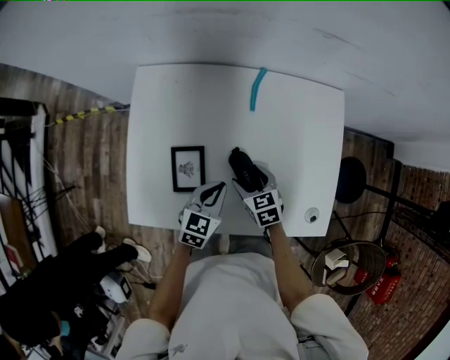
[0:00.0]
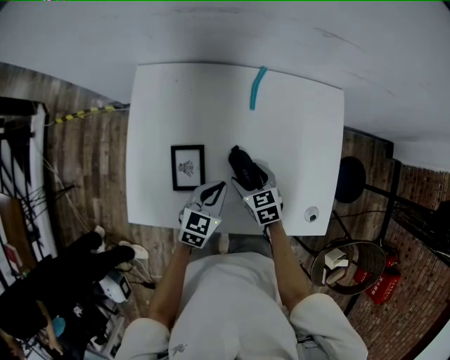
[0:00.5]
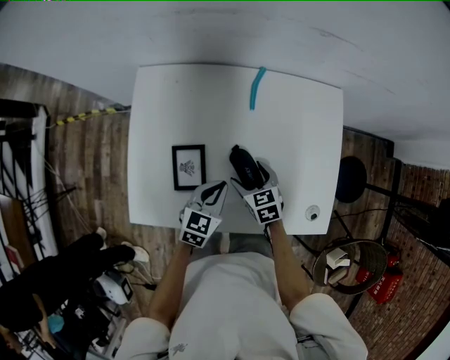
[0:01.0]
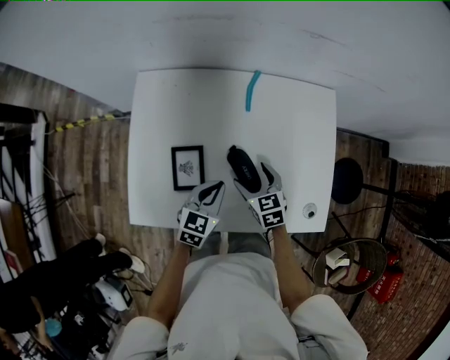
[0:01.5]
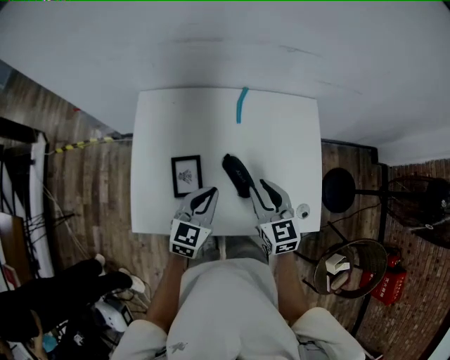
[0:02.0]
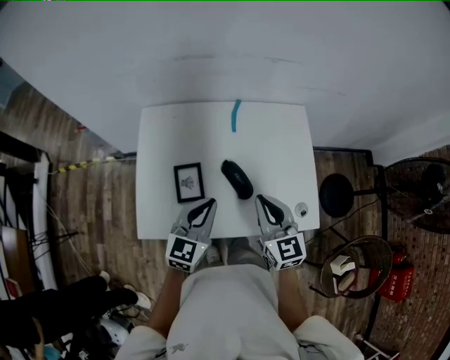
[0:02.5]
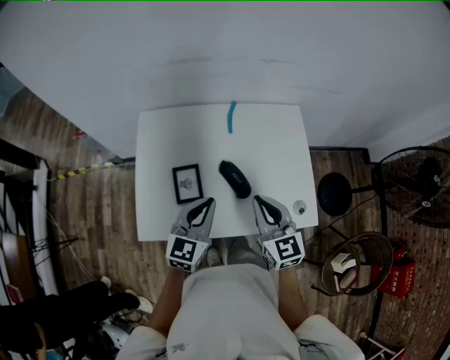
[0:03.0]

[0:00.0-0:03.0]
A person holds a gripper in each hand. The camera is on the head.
0:00.0 to 0:01.5: The grippers stay close to where they were, moving slightly.
0:01.5 to 0:03.0: Both grippers move upward and backward, roughly 20 cm. The left gripper changes its angle by about 20 degrees. The right gripper turns by roughly 30 degrees, and closes its fingers.

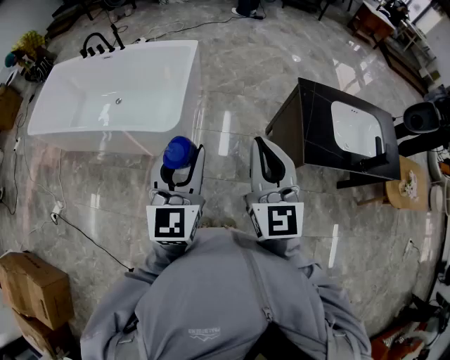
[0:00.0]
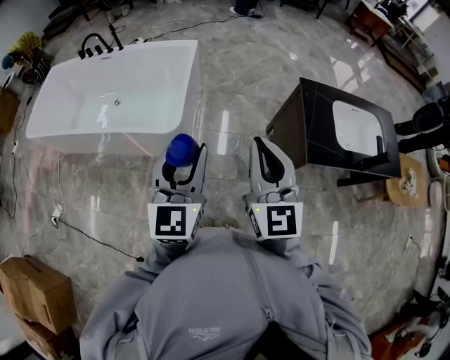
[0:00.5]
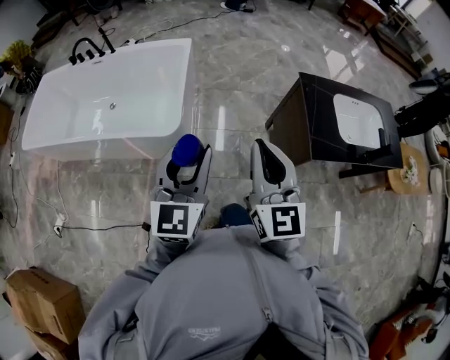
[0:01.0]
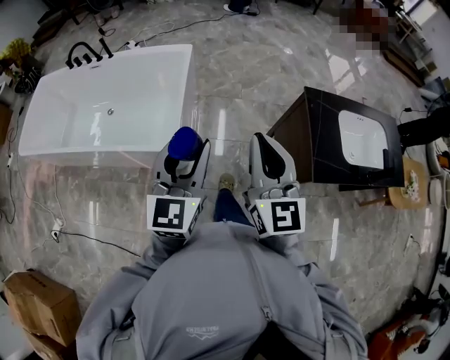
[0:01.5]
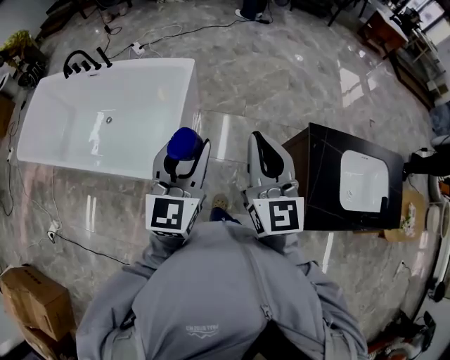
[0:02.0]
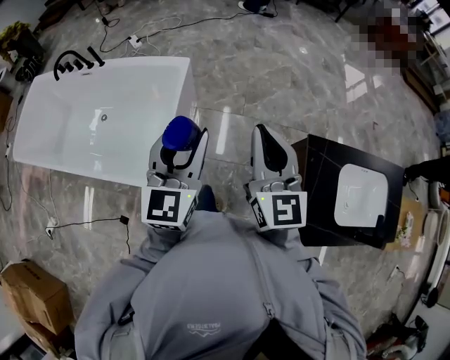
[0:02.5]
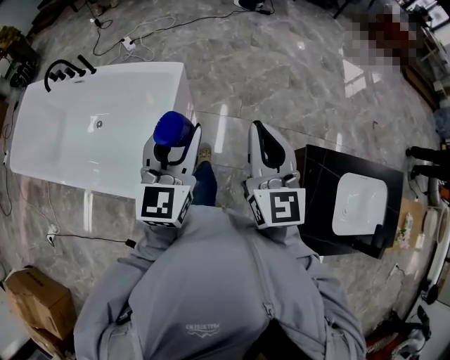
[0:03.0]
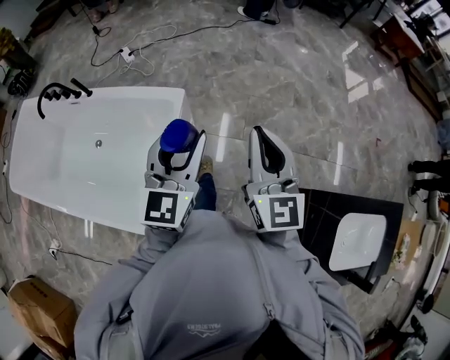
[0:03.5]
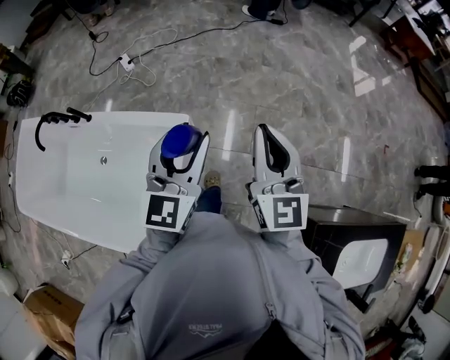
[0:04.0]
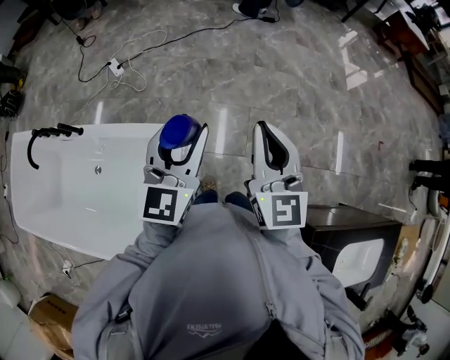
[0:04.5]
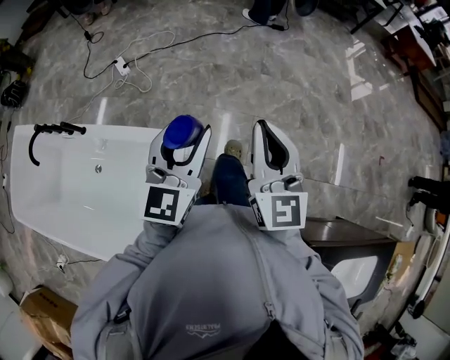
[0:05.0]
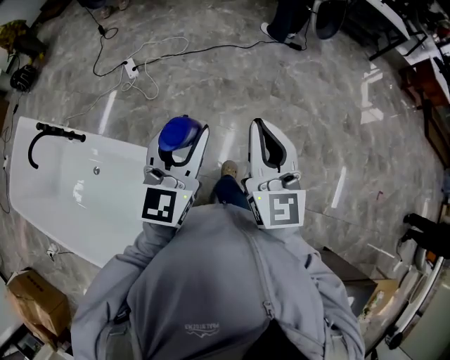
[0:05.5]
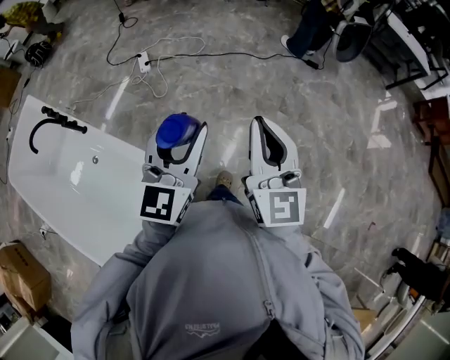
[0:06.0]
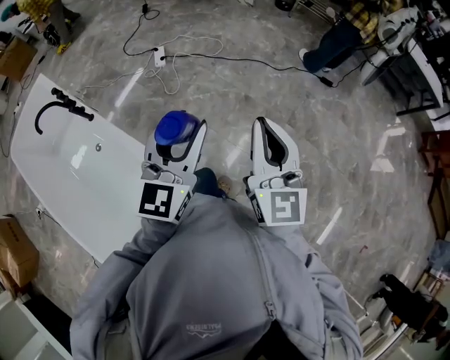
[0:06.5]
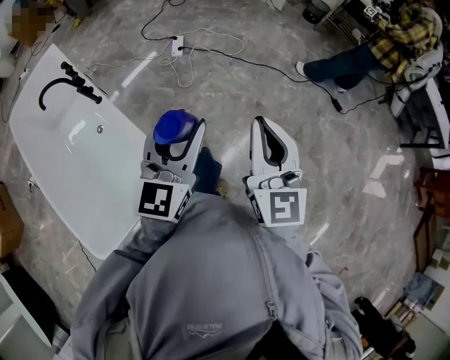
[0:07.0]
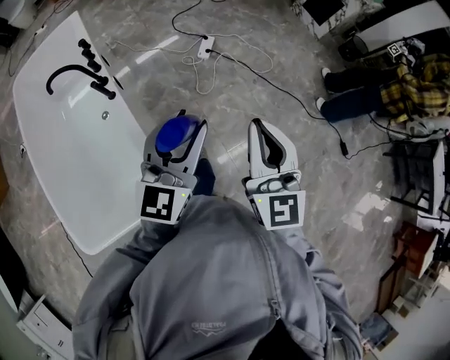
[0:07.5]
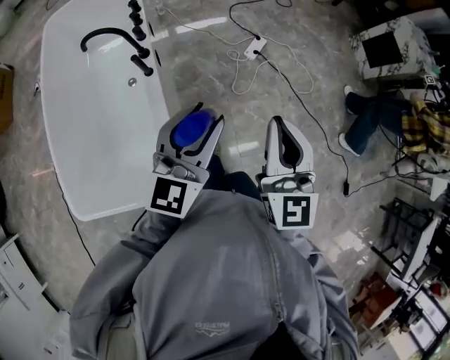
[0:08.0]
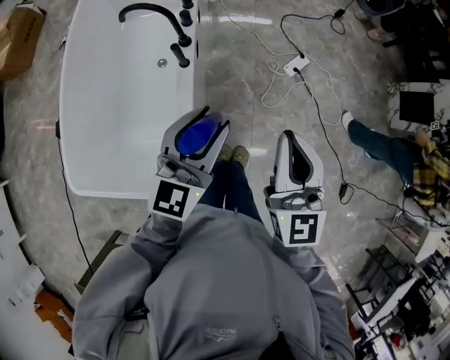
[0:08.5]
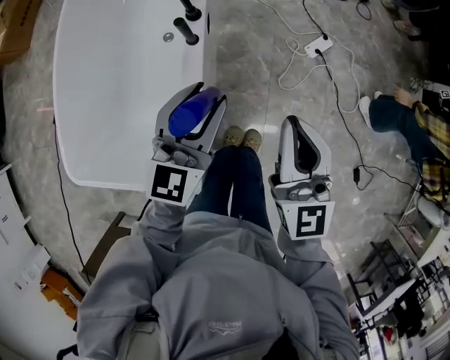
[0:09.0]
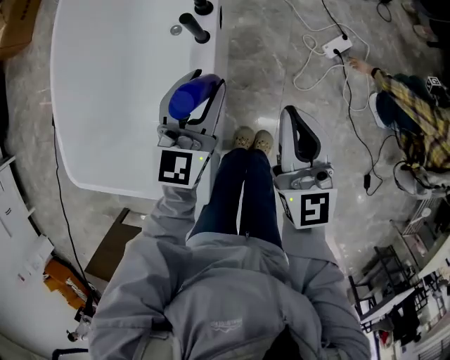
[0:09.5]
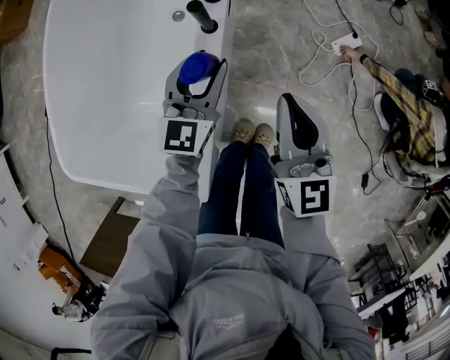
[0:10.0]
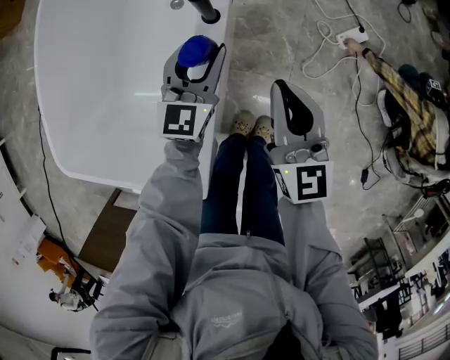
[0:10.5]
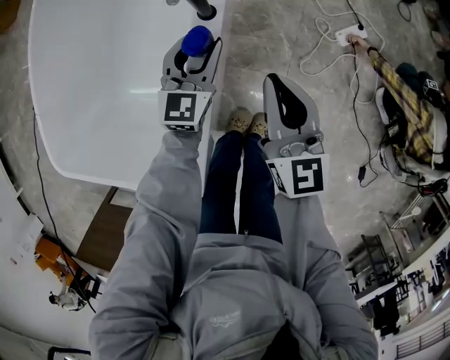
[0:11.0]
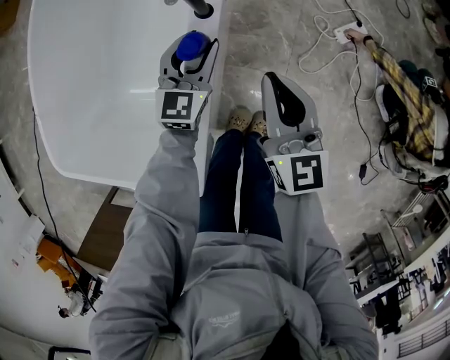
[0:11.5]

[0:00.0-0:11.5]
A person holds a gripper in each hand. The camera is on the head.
0:00.0 to 0:02.0: Both grippers travel together forward, roughly 30 cm.
0:02.0 to 0:04.0: The pair of grippers is taken forward, some 50 cm.
0:04.0 to 0:06.0: Both grippers move forward, roughly 30 cm.
0:06.0 to 0:07.5: The left gripper shifts by some 25 cm, and swivels about 30 degrees. Meanwhile the right gripper moves roughly 30 cm, and swivels approximately 30 degrees.
0:07.5 to 0:09.5: The right gripper ends up roughly 40 cm from where it was, and swivels about 40 degrees. Meanwhile the left gripper shifts by some 40 cm, and turns by approximately 40 degrees.
0:09.5 to 0:11.5: The right gripper is displaced downward by roughly 10 cm, while the left gripper shifts approximately 15 cm downward.

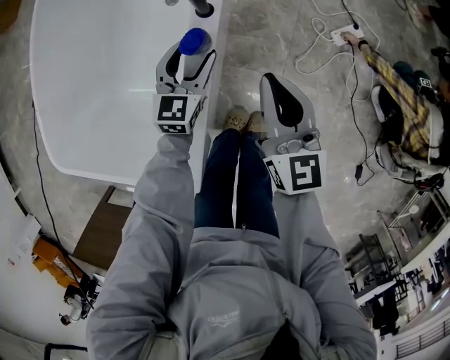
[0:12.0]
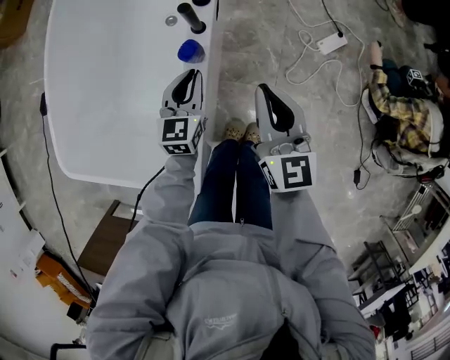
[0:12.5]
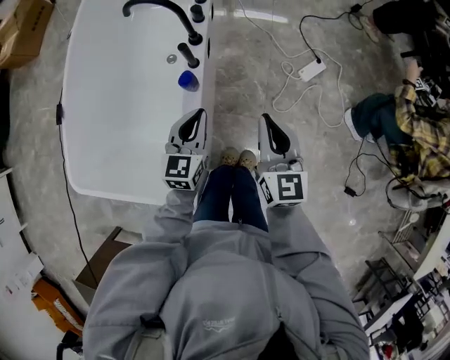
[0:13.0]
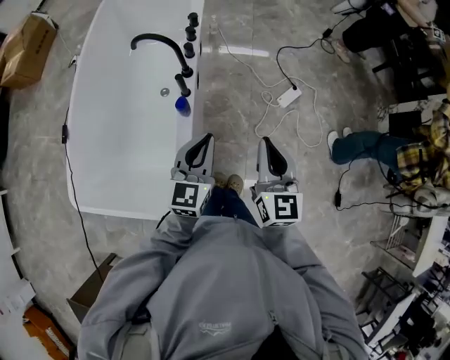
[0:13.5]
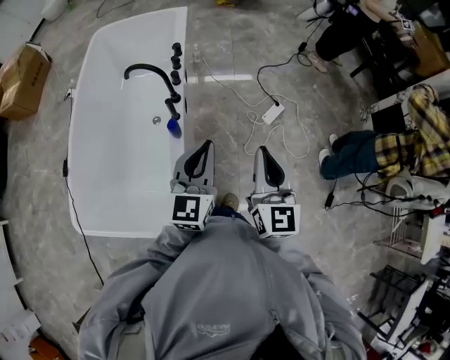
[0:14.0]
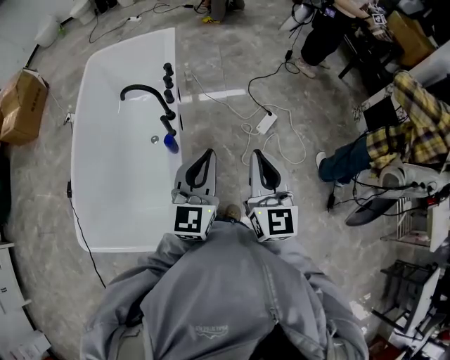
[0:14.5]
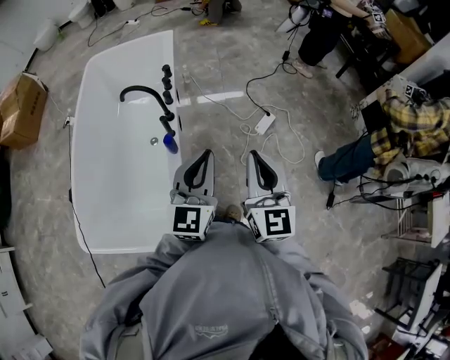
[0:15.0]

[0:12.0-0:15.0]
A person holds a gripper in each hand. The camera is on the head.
0:12.0 to 0:13.5: The right gripper goes approximately 25 cm upward, to the right and backward; the left gripper travels upward and backward by approximately 35 cm, and closes its fingers.
0:13.5 to 0:15.0: The right gripper heads upward and backward, covering some 15 cm. Meanwhile the left gripper moves upward, about 15 cm.

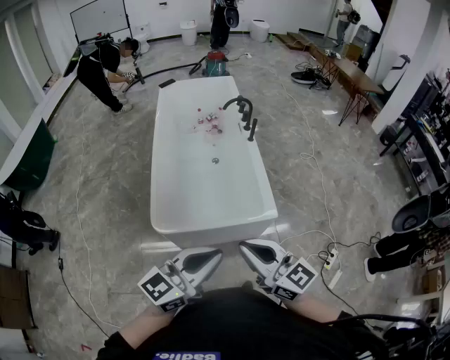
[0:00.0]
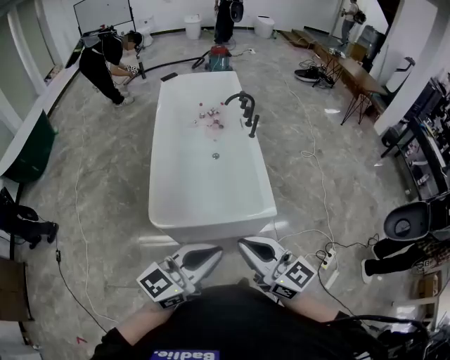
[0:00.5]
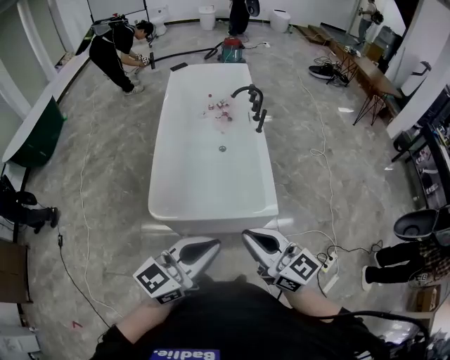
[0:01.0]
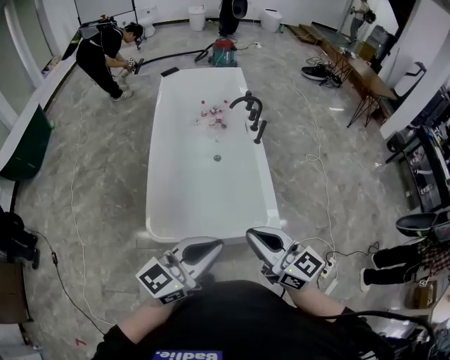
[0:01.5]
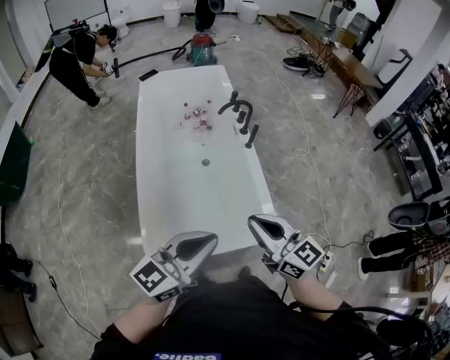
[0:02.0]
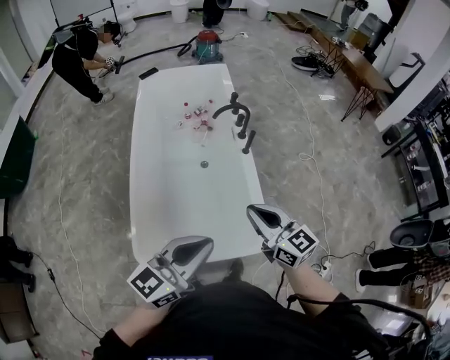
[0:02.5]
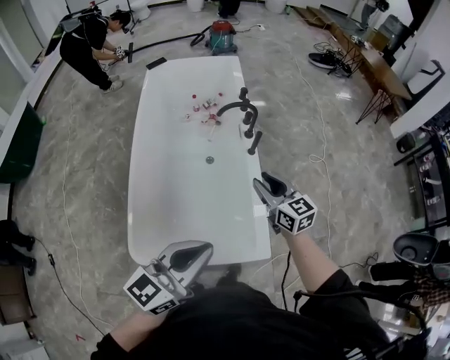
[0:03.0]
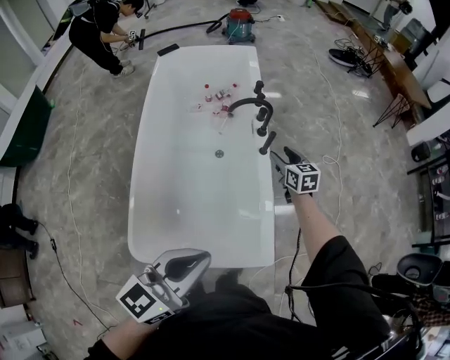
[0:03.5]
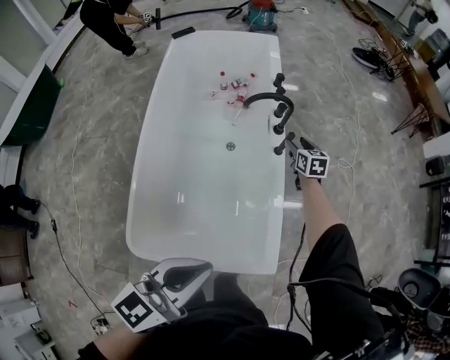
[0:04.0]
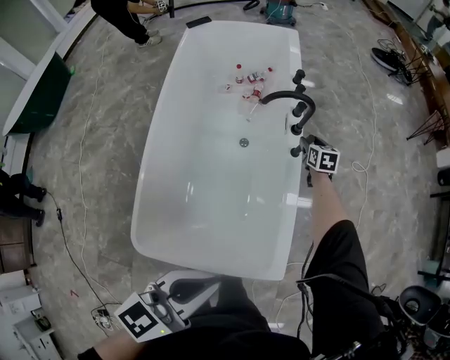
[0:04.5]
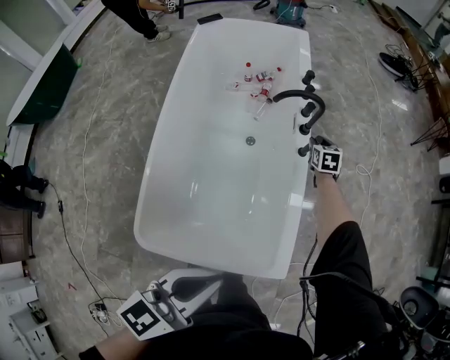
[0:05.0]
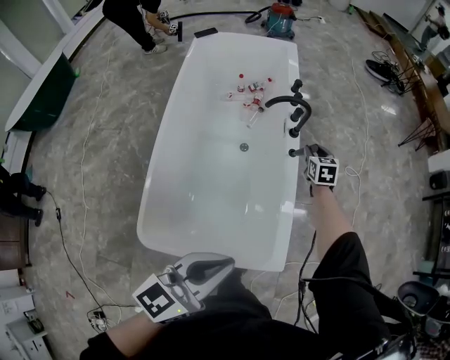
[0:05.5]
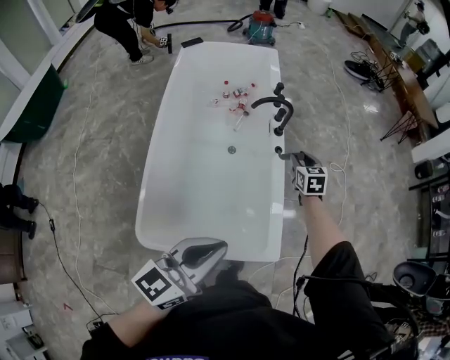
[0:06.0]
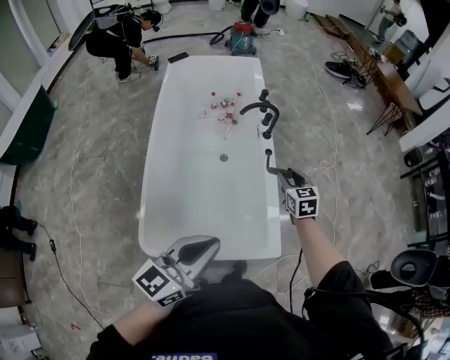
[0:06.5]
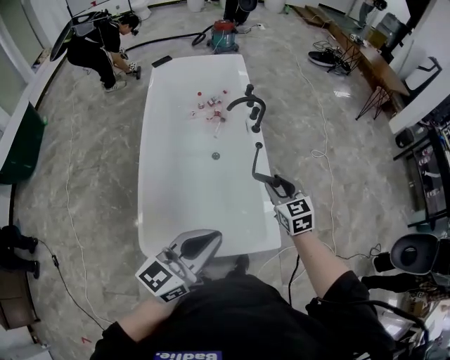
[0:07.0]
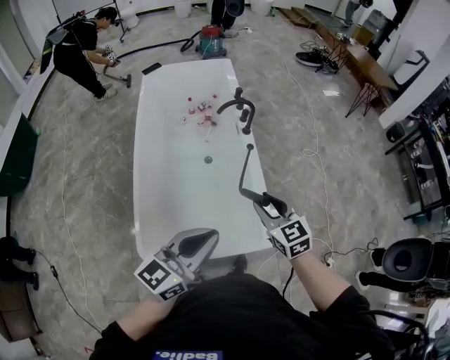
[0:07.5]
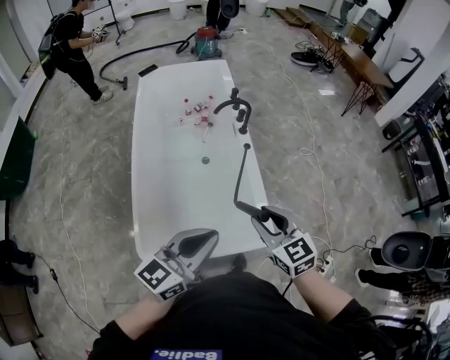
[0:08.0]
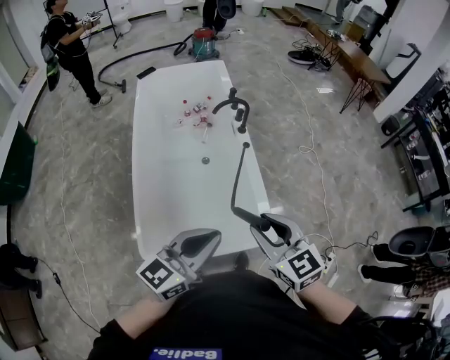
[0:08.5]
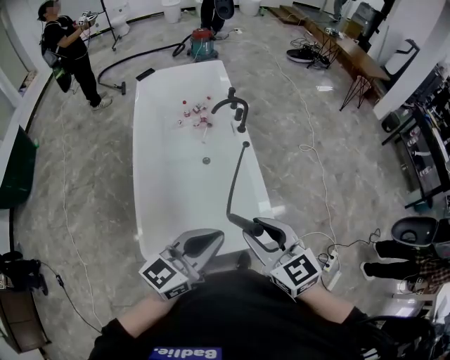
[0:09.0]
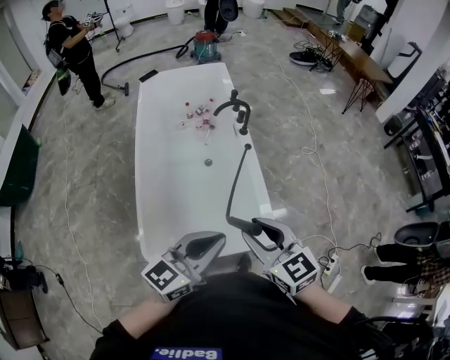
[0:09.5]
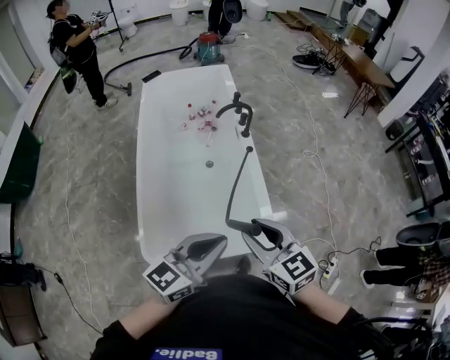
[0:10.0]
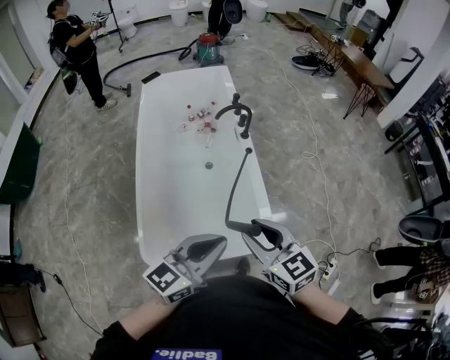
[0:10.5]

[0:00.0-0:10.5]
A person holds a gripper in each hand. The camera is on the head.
0:00.0 to 0:02.0: The two grippers go approximately 30 cm forward.
0:02.0 to 0:04.0: The right gripper moves forward and downward, roughly 70 cm, tilts its fingers some 30 degrees downward, and opens its fingers. Meanwhile the left gripper travels forward, to the right and downward by some 25 cm, and rotates roughly 20 degrees.
0:04.0 to 0:06.5: The left gripper moves backward, approximately 10 cm. The right gripper is displaced backward and upward by approximately 30 cm.
0:06.5 to 0:08.5: The right gripper heads backward and upward, covering roughly 35 cm.
0:08.5 to 0:10.5: The grippers make only small movements.
